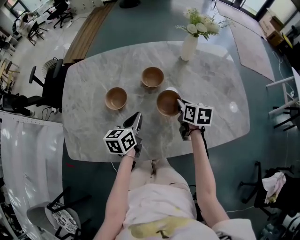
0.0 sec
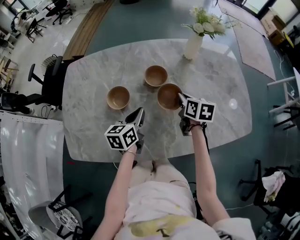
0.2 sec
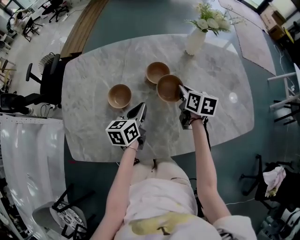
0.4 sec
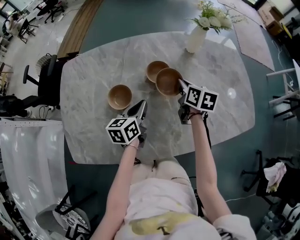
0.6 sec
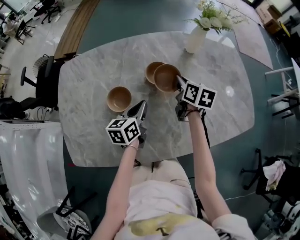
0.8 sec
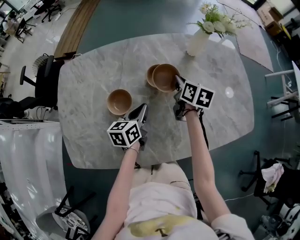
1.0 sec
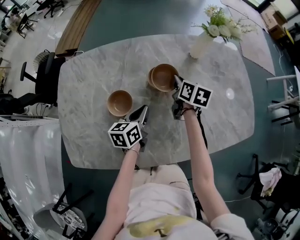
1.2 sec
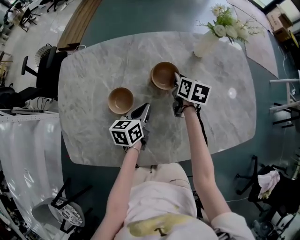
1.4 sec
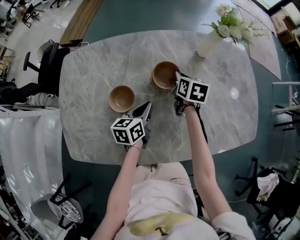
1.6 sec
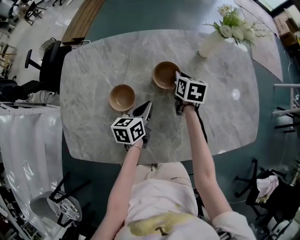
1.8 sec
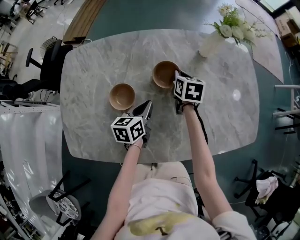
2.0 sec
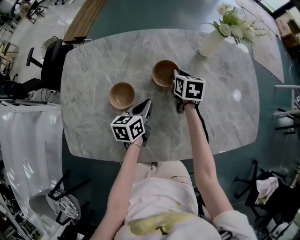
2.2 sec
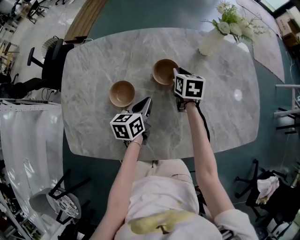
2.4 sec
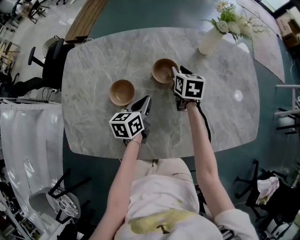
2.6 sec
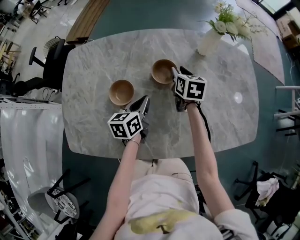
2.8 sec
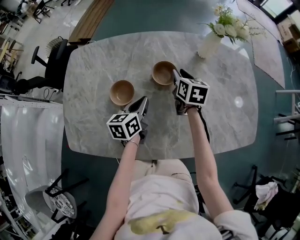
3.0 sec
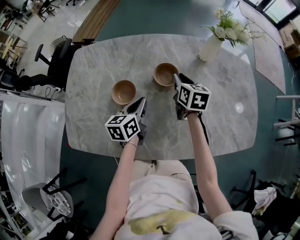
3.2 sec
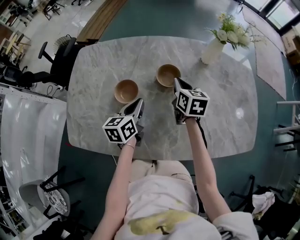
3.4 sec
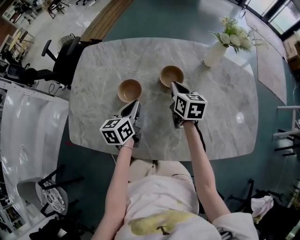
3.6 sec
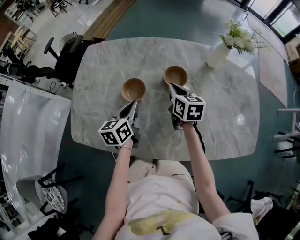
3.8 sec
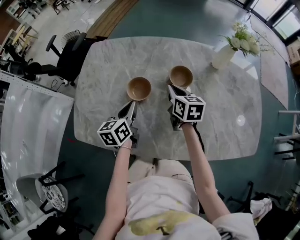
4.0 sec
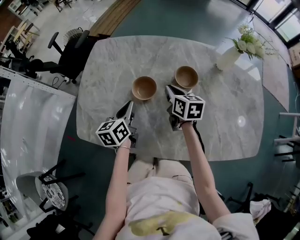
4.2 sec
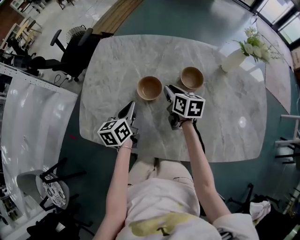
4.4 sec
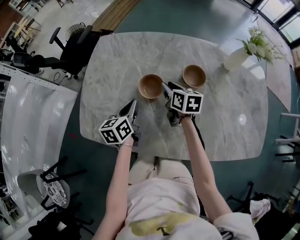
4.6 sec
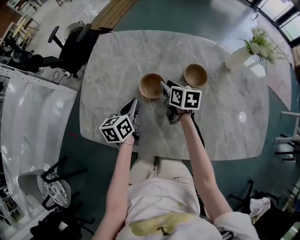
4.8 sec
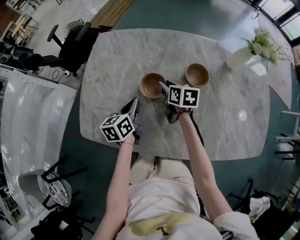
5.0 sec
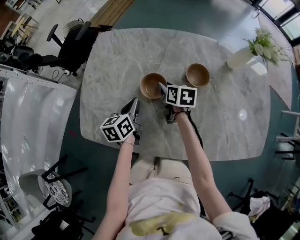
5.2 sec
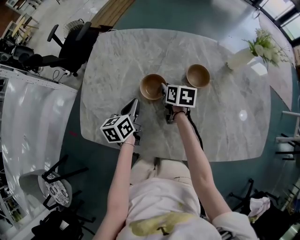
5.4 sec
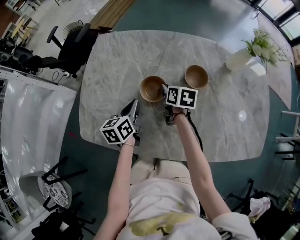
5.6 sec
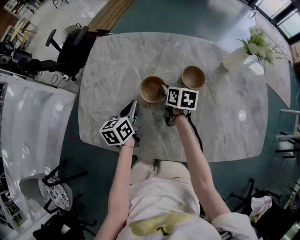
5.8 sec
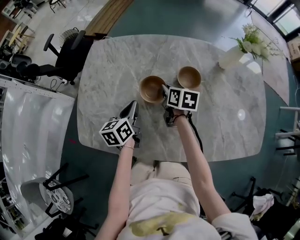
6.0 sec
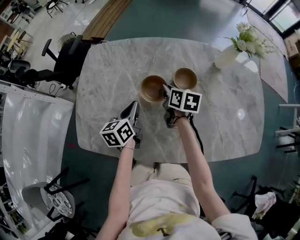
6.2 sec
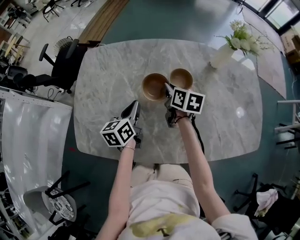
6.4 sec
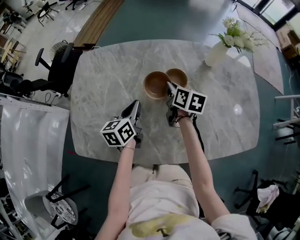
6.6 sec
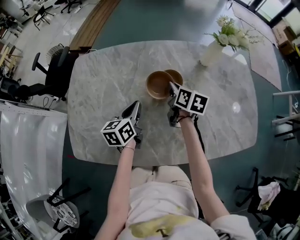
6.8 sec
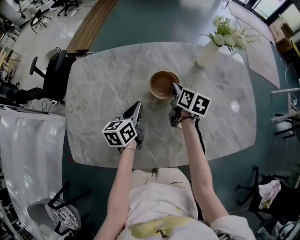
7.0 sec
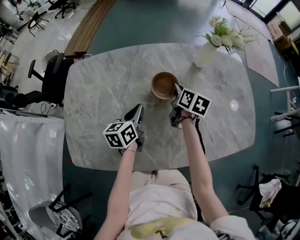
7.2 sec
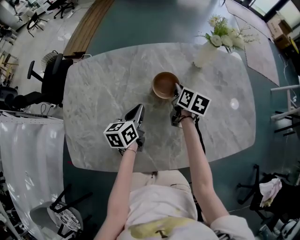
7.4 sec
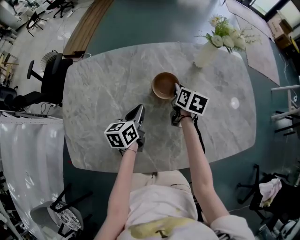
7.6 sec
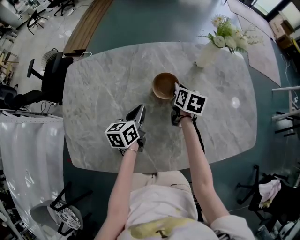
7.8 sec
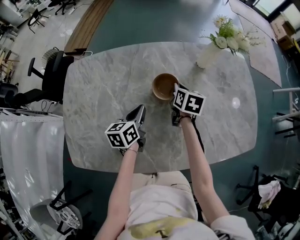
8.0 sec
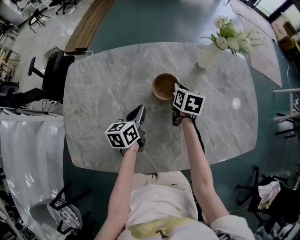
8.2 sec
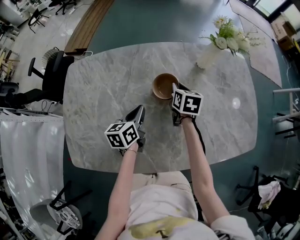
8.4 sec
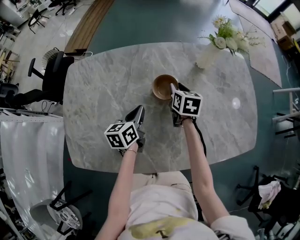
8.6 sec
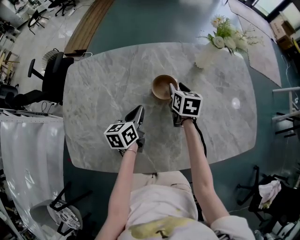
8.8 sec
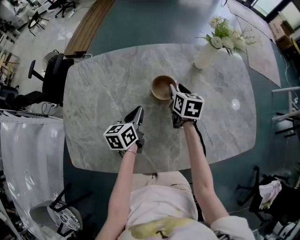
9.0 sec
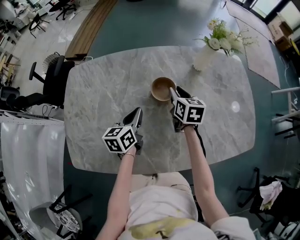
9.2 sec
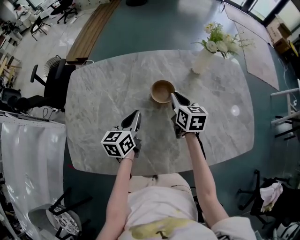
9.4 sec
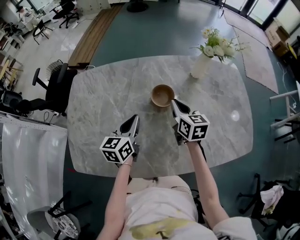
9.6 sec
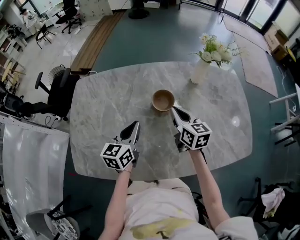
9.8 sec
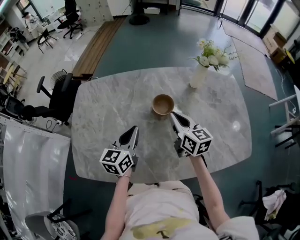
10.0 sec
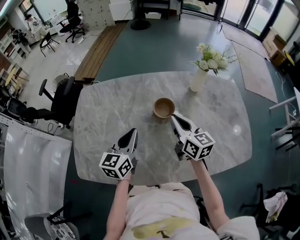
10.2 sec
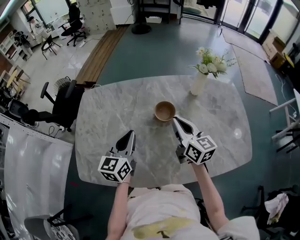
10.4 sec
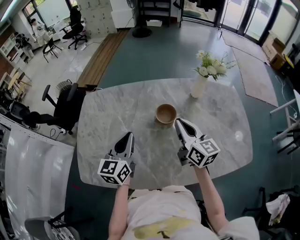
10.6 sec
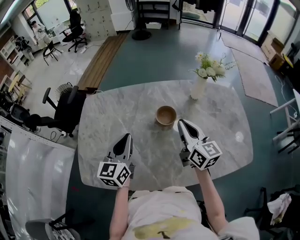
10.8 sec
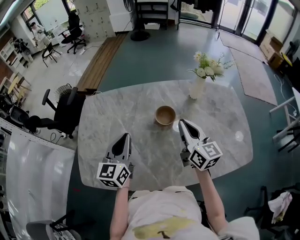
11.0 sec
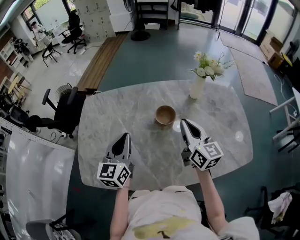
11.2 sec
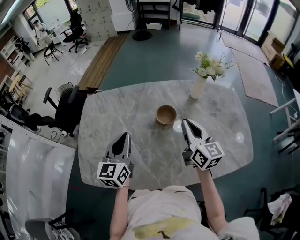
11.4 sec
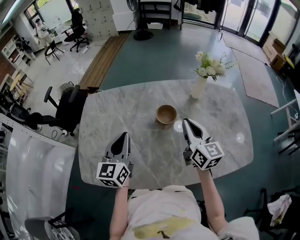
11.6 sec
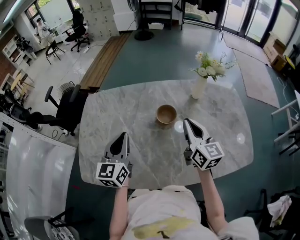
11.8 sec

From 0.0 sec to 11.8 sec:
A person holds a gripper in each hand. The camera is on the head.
From 0.0 sec to 1.4 sec: The right gripper shifts roughly 15 cm forward and to the left, while the left gripper shifts about 5 cm forward.
From 1.4 sec to 3.0 sec: The right gripper opens.
From 3.0 sec to 4.4 sec: The grippers both shift to the left by about 15 cm. The right gripper rotates roughly 20 degrees.
From 6.0 sec to 7.4 sec: The left gripper shifts roughly 15 cm to the right and forward. The right gripper is displaced to the right by approximately 20 cm, and turns by approximately 20 degrees.
From 7.4 sec to 8.8 sec: The right gripper opens its fingers.
From 8.8 sec to 10.4 sec: Both grippers move upward and backward, approximately 15 cm. The left gripper swivels about 30 degrees; the right gripper points its fingers approximately 30 degrees further upward, and closes.
From 10.4 sec to 11.8 sec: The right gripper moves approximately 5 cm, while the left gripper changes place by approximately 5 cm.

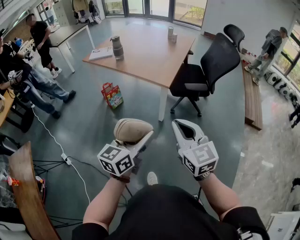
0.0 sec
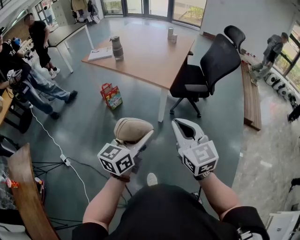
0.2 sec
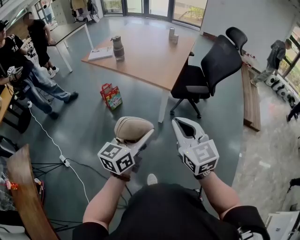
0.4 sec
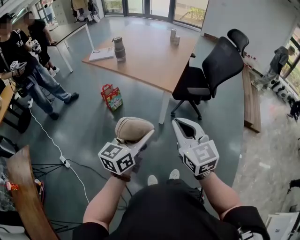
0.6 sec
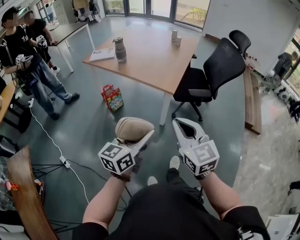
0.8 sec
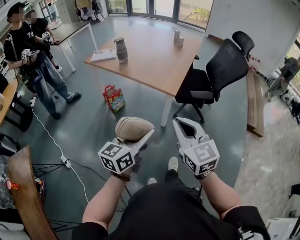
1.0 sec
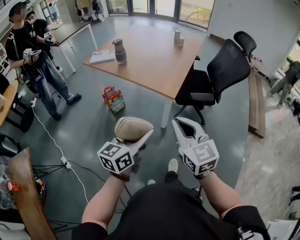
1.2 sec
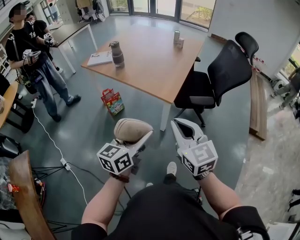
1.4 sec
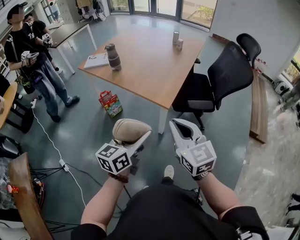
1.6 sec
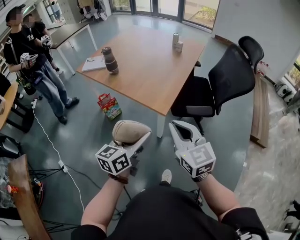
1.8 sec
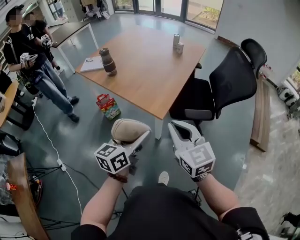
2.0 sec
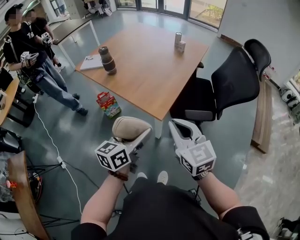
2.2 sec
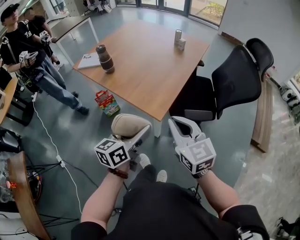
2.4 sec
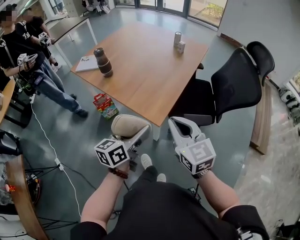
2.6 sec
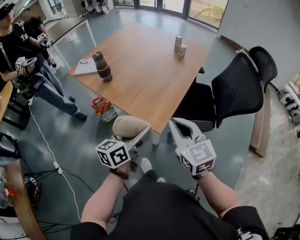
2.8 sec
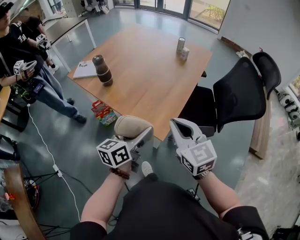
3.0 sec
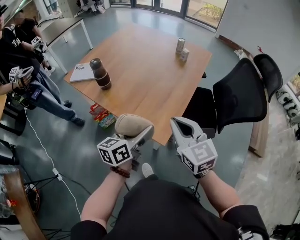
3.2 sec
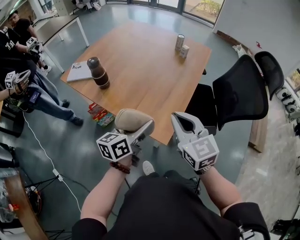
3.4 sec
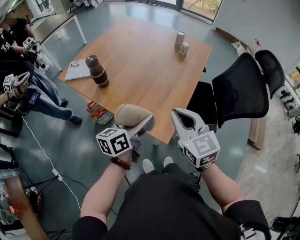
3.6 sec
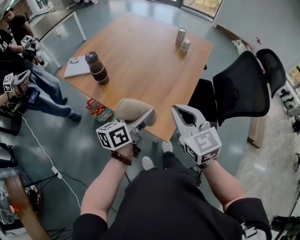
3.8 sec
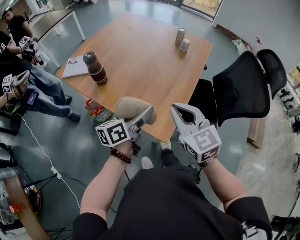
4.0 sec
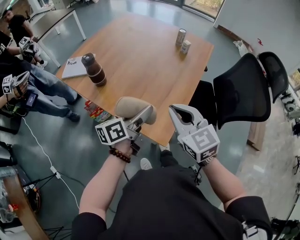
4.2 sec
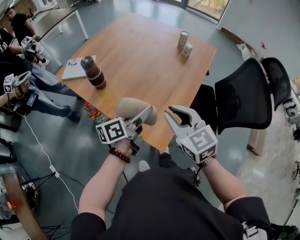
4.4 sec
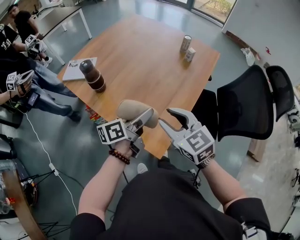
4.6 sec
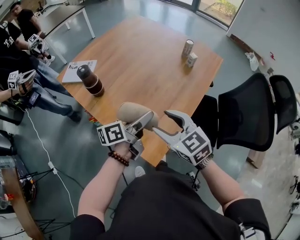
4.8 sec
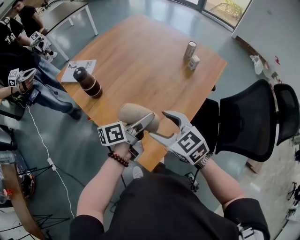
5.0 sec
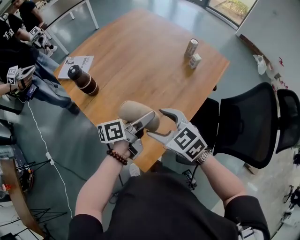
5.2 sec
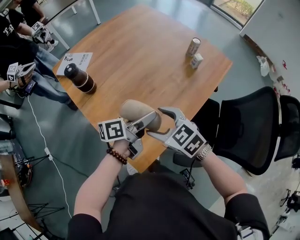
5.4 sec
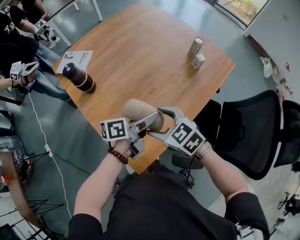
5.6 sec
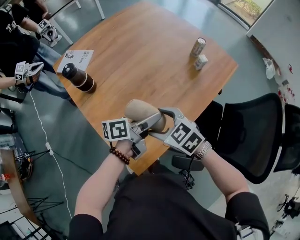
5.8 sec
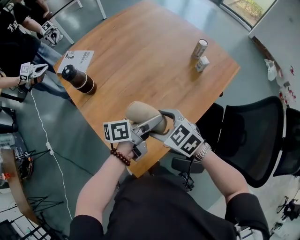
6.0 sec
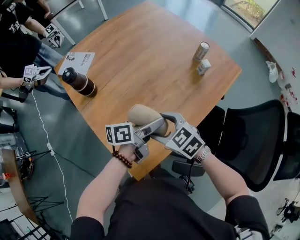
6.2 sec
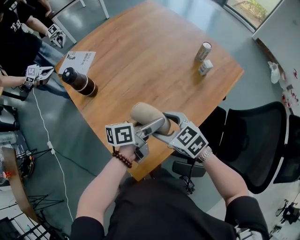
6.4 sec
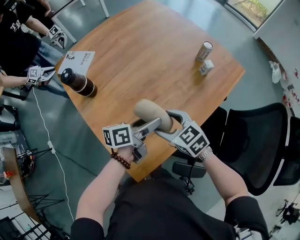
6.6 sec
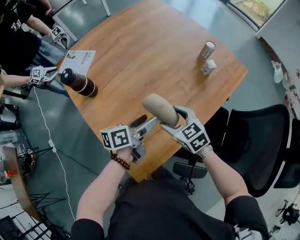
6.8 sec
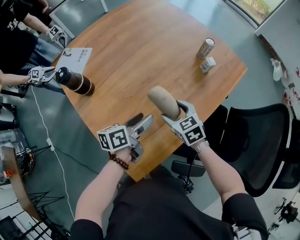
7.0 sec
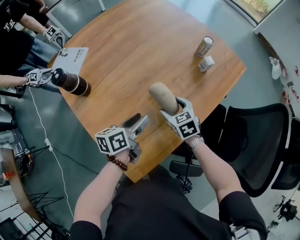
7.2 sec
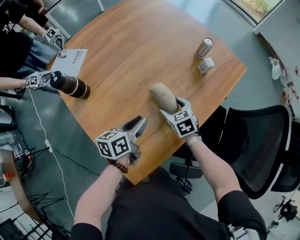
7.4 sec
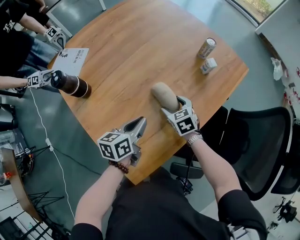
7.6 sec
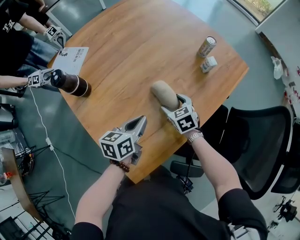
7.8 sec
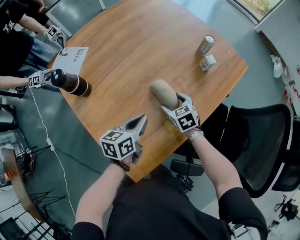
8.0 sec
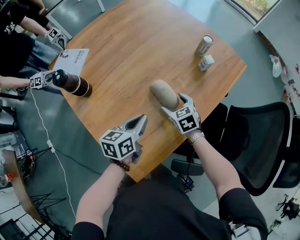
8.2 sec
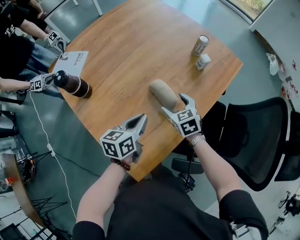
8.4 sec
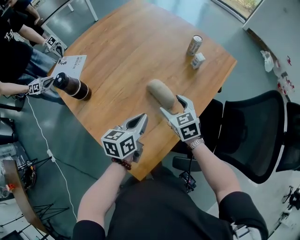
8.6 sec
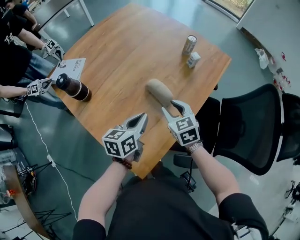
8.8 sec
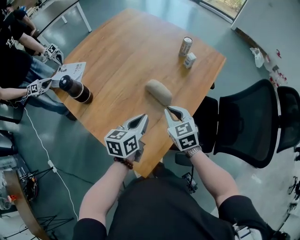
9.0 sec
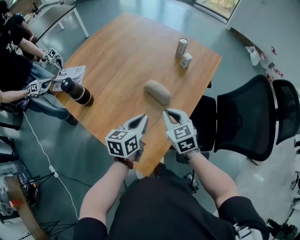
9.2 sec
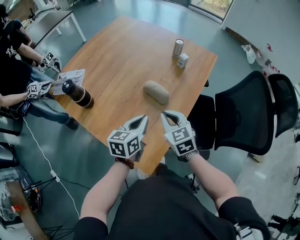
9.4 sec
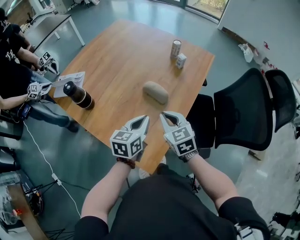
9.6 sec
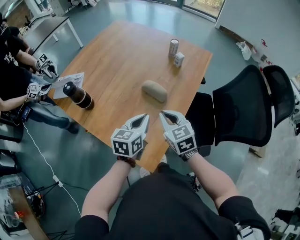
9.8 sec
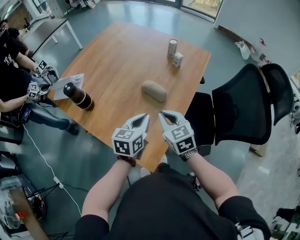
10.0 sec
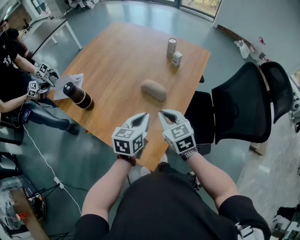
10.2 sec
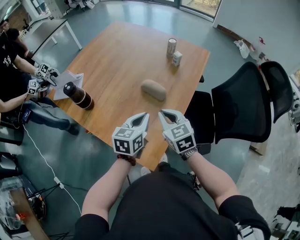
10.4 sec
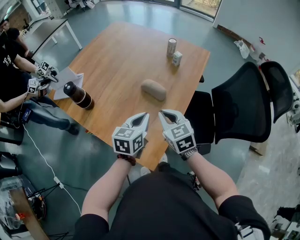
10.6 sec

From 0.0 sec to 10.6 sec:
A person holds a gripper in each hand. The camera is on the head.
From 0.0 sec to 1.6 sec: Both grippers travel together forward, about 20 cm.
From 1.6 sec to 3.0 sec: The grippers both shift forward by some 25 cm.
From 3.0 sec to 4.6 sec: Both grippers move forward, some 15 cm. The left gripper swivels about 30 degrees. The right gripper opens up.
From 4.6 sec to 6.0 sec: The left gripper is displaced to the right, forward and downward by roughly 20 cm. Meanwhile the right gripper goes about 20 cm forward, downward and to the right, turns by roughly 30 degrees, and opens up.
From 6.0 sec to 7.6 sec: The left gripper shifts some 5 cm downward, swivels some 30 degrees, and closes up. Meanwhile the right gripper travels downward, forward and to the right by about 20 cm, and swivels approximately 30 degrees.
From 7.6 sec to 9.0 sec: The right gripper is displaced upward and backward by about 15 cm, and closes its fingers. Meanwhile the left gripper goes approximately 5 cm upward.
From 9.0 sec to 10.6 sec: The right gripper shifts approximately 10 cm backward and upward.

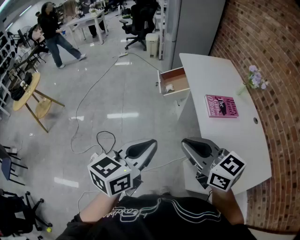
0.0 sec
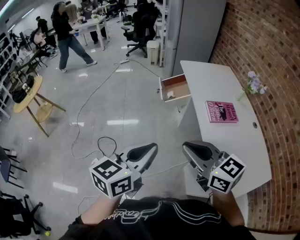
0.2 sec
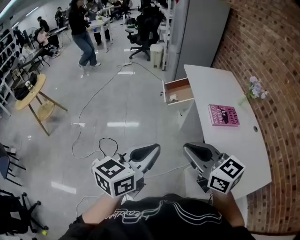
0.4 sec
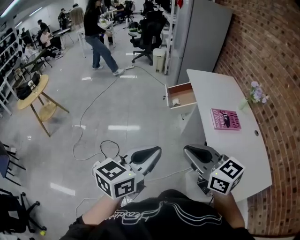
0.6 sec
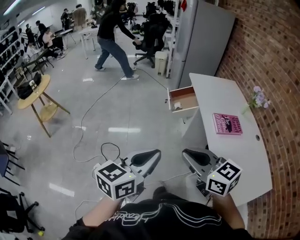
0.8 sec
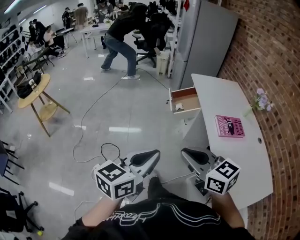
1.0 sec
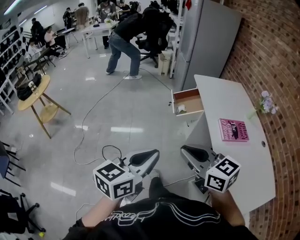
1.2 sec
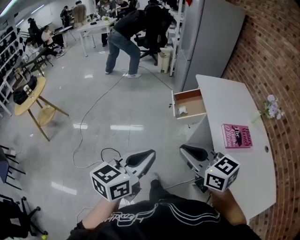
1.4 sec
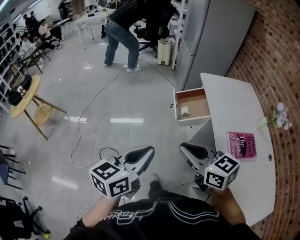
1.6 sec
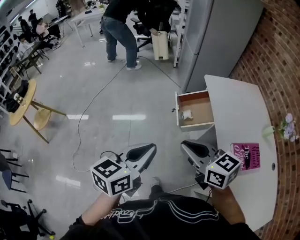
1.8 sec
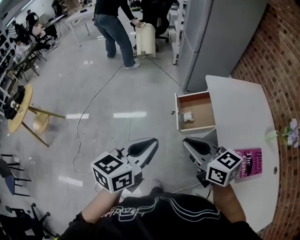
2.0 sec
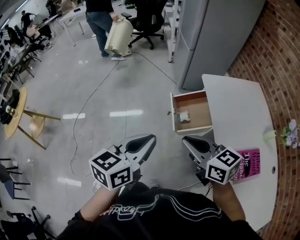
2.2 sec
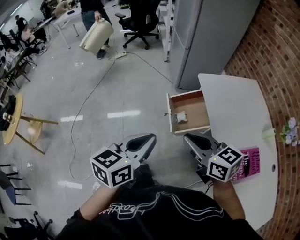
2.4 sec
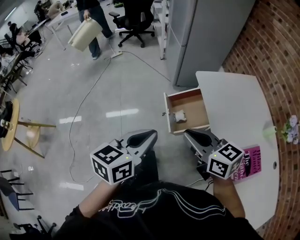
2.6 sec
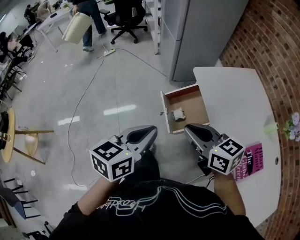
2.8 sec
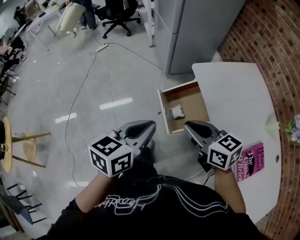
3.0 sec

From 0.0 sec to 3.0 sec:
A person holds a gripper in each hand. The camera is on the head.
From 0.0 sec to 1.6 sec: The right gripper moves forward, roughly 25 cm, while the left gripper is displaced forward and to the left by about 25 cm.
From 1.6 sec to 3.0 sec: Both grippers move forward, approximately 40 cm.
